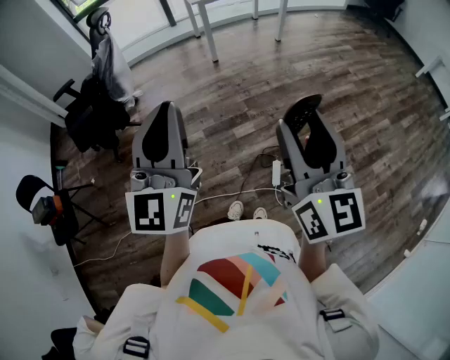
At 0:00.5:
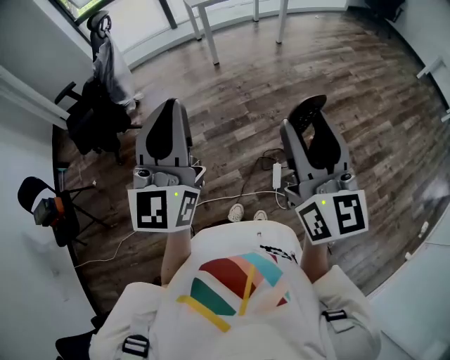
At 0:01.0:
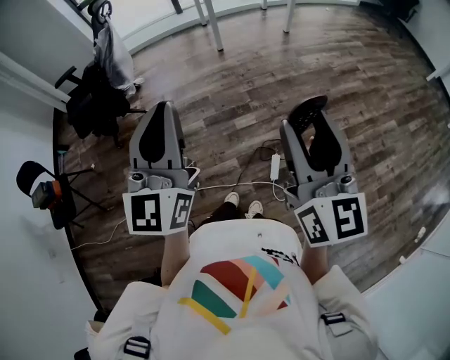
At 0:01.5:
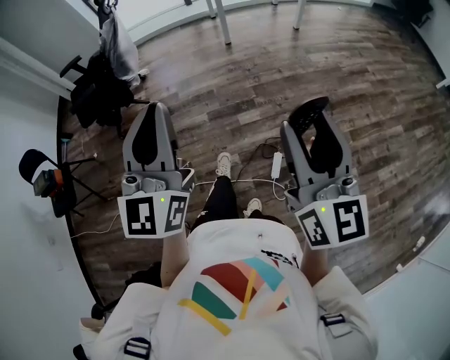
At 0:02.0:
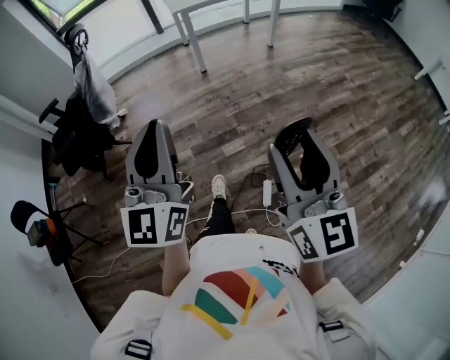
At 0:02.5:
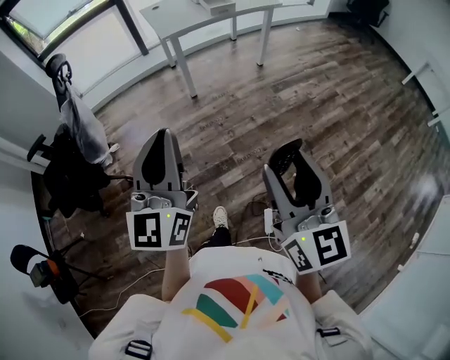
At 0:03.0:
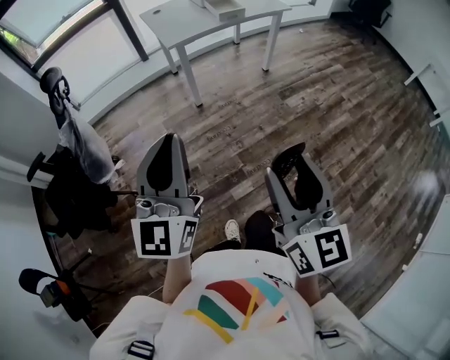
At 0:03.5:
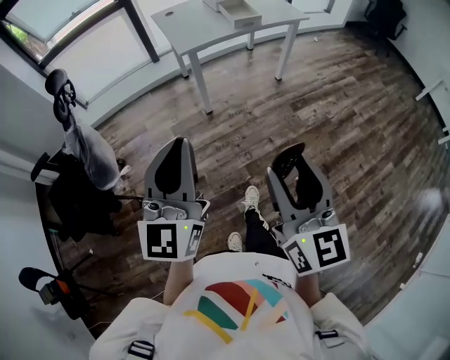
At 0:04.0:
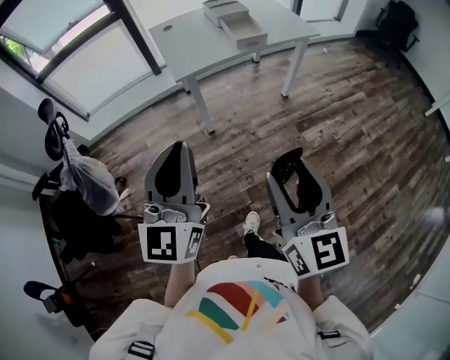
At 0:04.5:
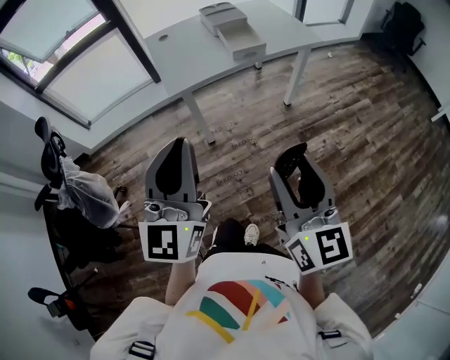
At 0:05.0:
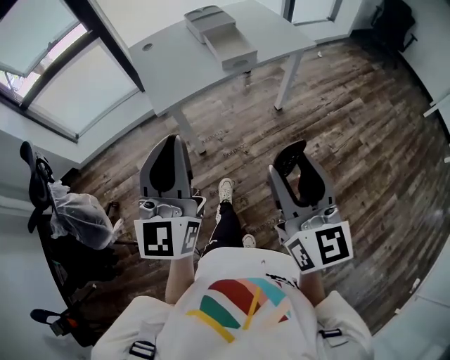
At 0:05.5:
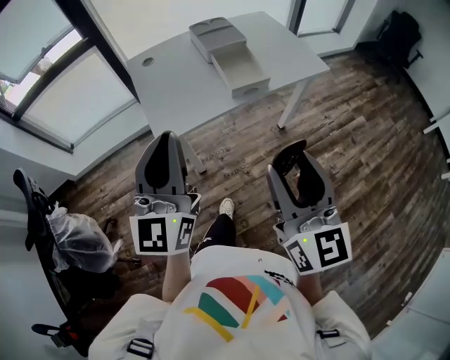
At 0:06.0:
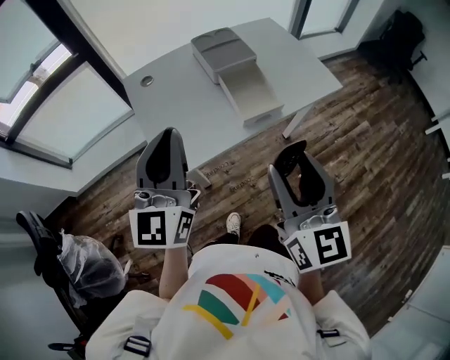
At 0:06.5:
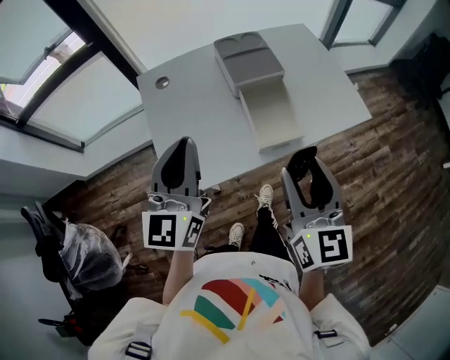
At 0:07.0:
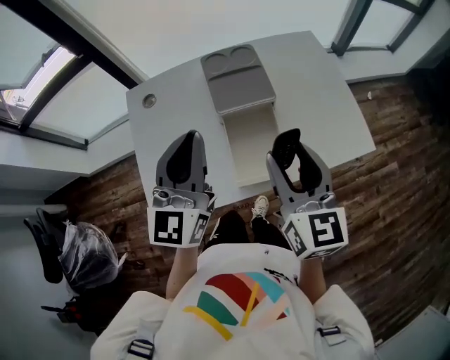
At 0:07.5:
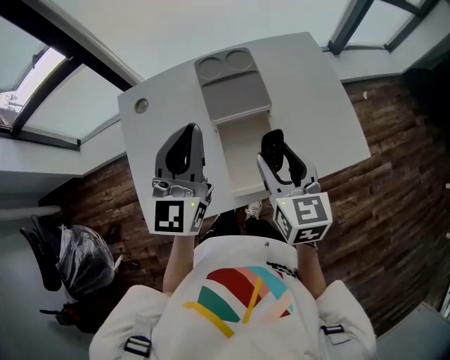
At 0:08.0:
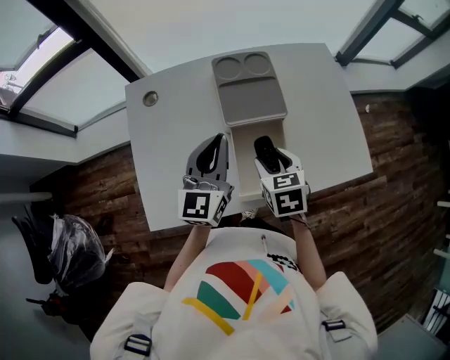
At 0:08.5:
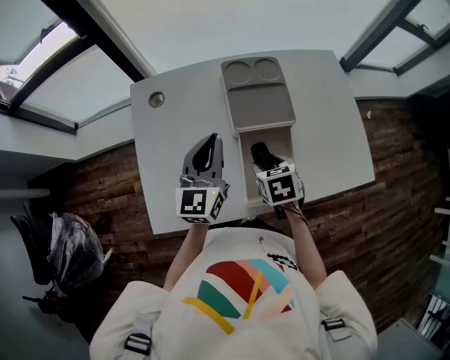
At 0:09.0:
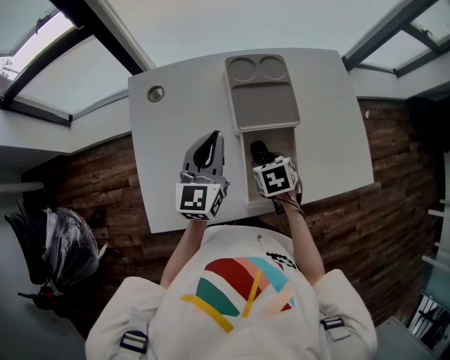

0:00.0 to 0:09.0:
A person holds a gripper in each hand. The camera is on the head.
0:00.0 to 0:02.0: The left gripper is displaced forward by roughly 15 cm. Meanwhile the right gripper shifts about 15 cm forward and to the right.
0:02.0 to 0:04.5: Both grippers are carried forward, approximately 60 cm.
0:04.5 to 0:07.0: Both grippers are carried forward, approximately 60 cm.
0:07.0 to 0:09.0: The right gripper goes some 25 cm downward, and tilts its fingers roughly 60 degrees downward. The left gripper is displaced downward and forward by roughly 20 cm.

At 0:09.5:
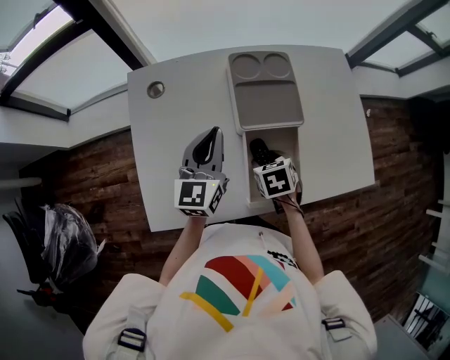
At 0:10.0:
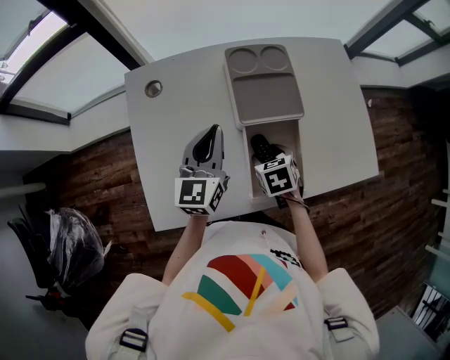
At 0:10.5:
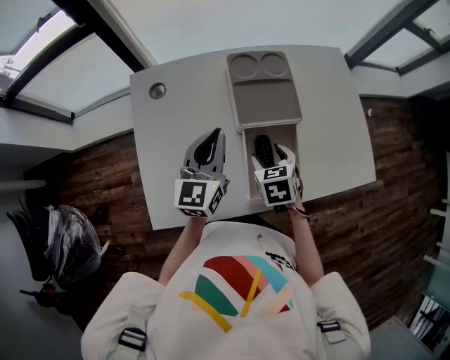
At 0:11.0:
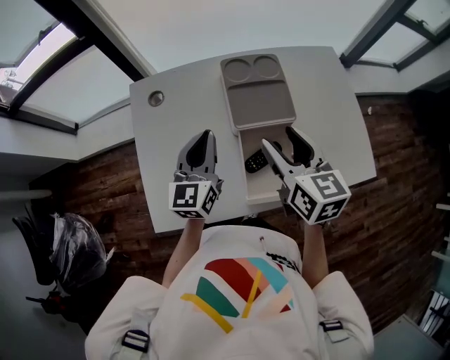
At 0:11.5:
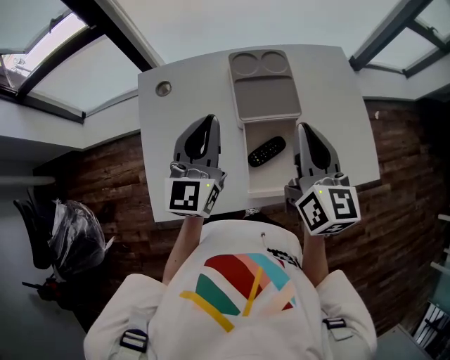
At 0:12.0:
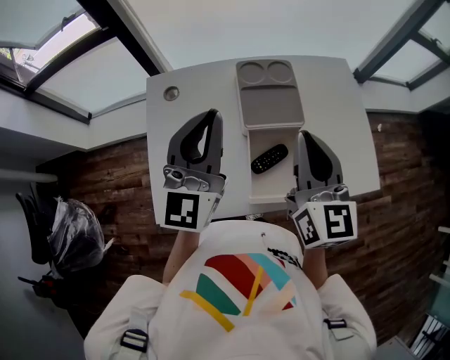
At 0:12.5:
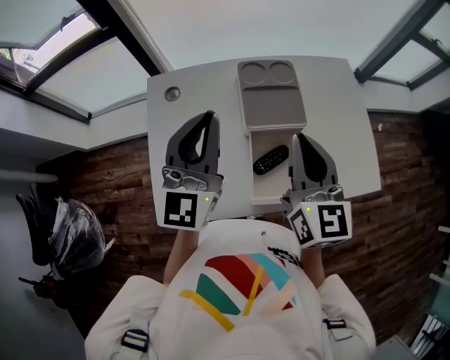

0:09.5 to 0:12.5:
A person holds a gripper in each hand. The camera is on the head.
0:09.5 to 0:11.0: The right gripper travels upward by some 20 cm, and tilts its fingers some 40 degrees upward.
0:11.0 to 0:12.5: The left gripper moves upward, about 15 cm, and rotates approximately 20 degrees, while the right gripper moves upward, some 10 cm, rotates some 20 degrees, and closes its fingers.

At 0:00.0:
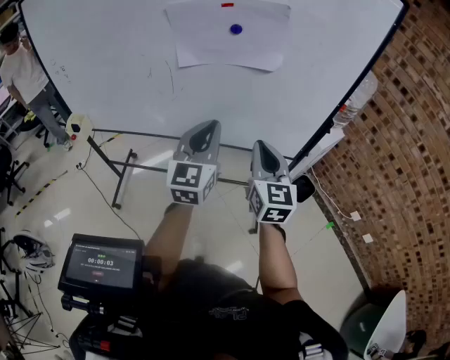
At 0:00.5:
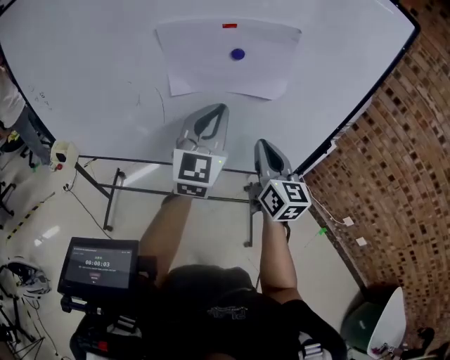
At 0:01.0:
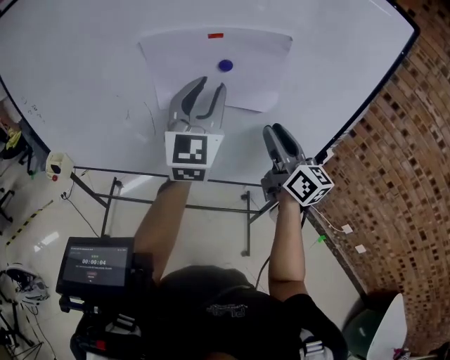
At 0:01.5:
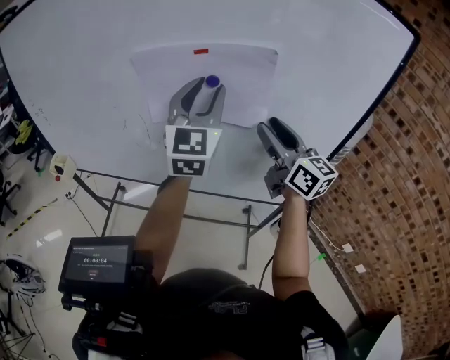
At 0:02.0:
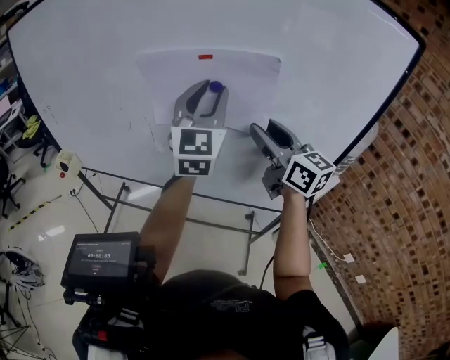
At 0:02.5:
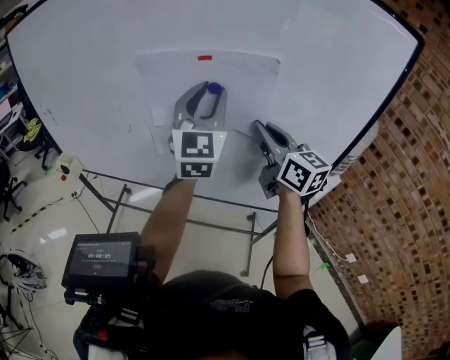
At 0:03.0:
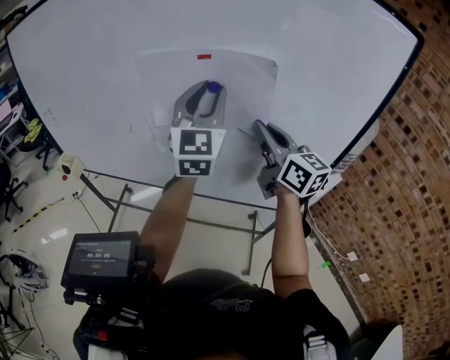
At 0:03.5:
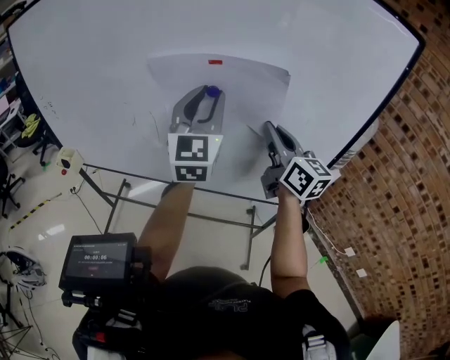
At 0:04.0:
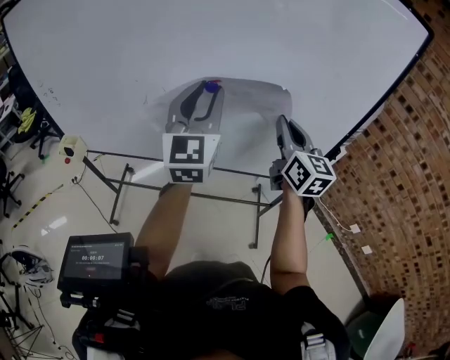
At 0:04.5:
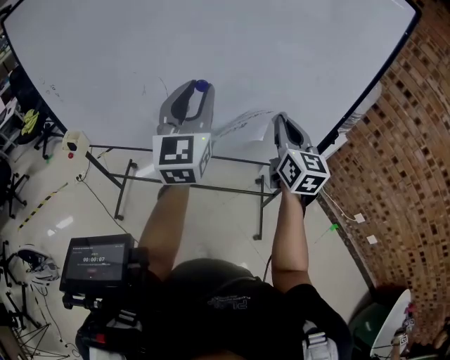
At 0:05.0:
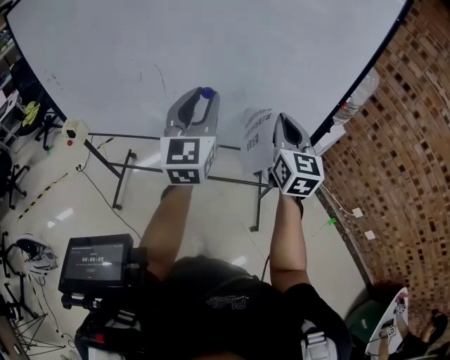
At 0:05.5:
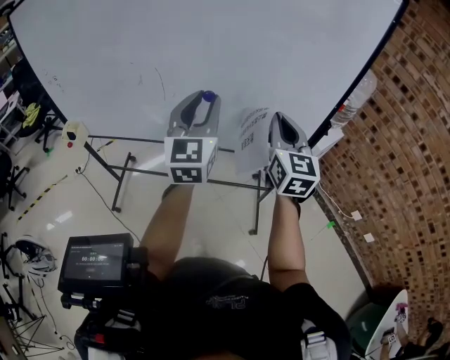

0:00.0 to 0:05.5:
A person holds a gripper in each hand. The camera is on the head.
0:00.0 to 0:02.0: Both grippers move forward and upward, about 25 cm. The left gripper opens up; the right gripper turns by roughly 40 degrees, and opens its fingers.
0:02.0 to 0:03.5: The right gripper closes.
0:03.5 to 0:05.5: The left gripper is displaced backward and downward by roughly 15 cm. Meanwhile the right gripper moves backward, roughly 10 cm, and rotates some 30 degrees.

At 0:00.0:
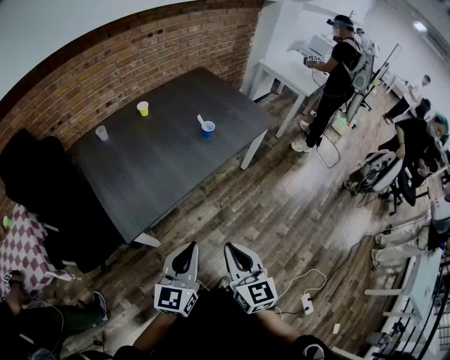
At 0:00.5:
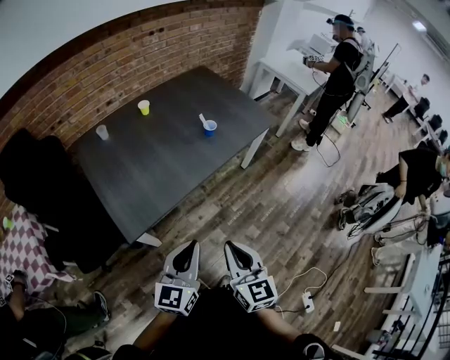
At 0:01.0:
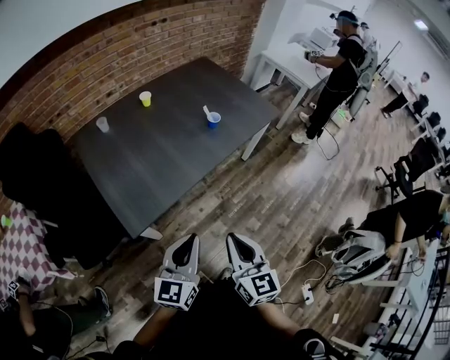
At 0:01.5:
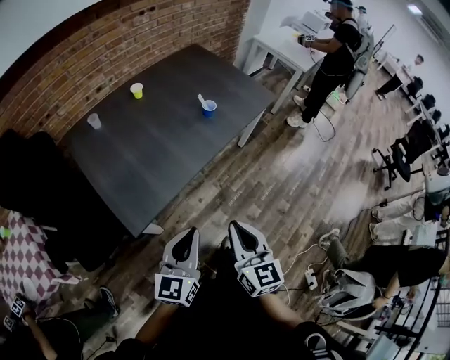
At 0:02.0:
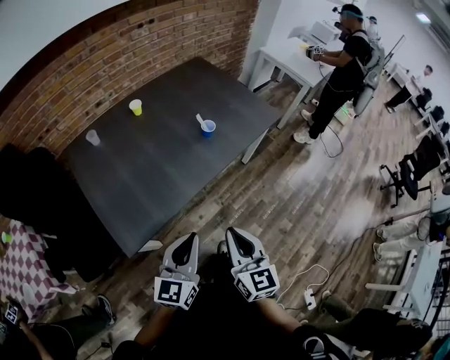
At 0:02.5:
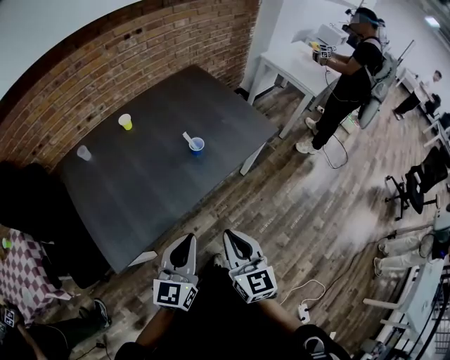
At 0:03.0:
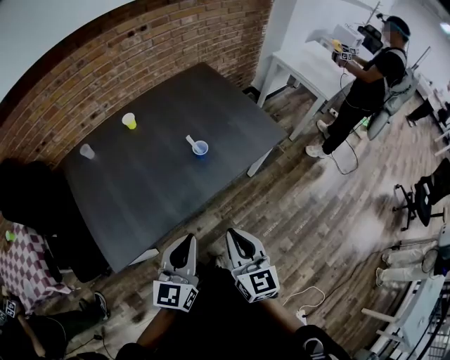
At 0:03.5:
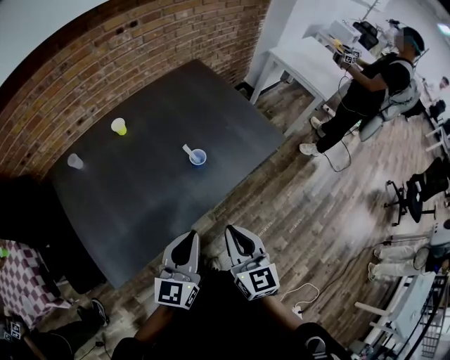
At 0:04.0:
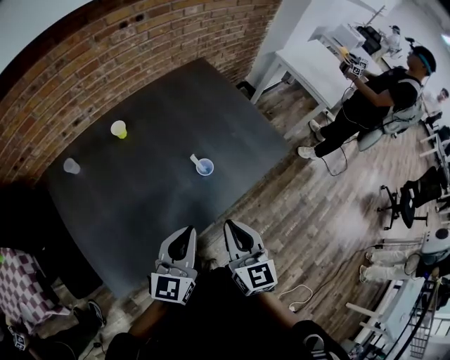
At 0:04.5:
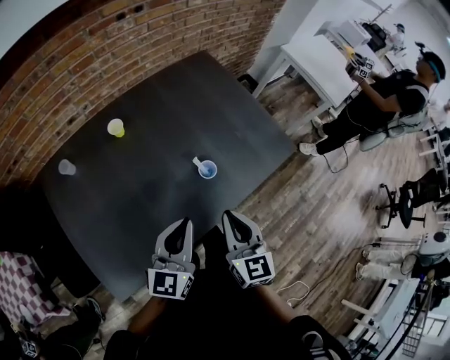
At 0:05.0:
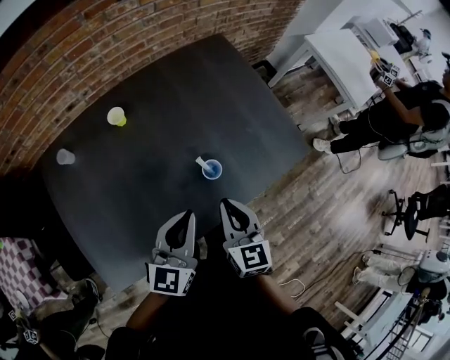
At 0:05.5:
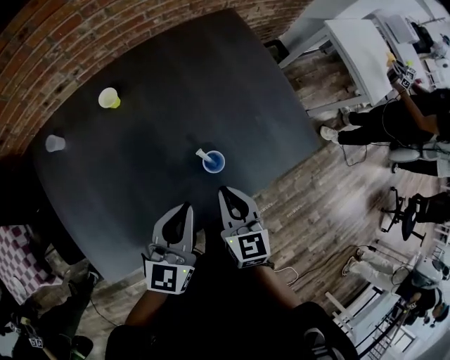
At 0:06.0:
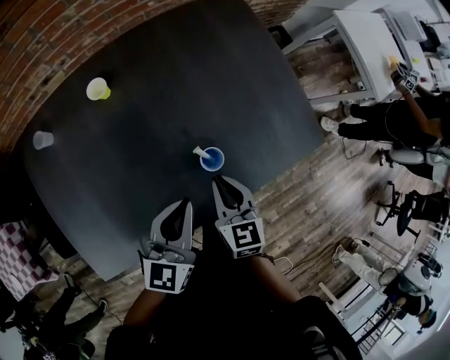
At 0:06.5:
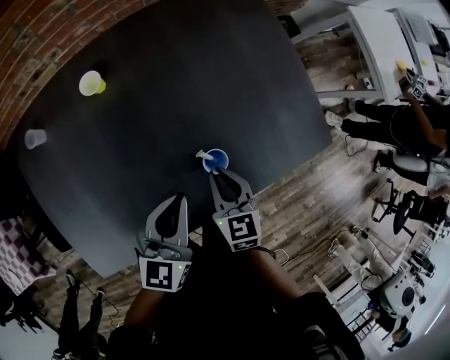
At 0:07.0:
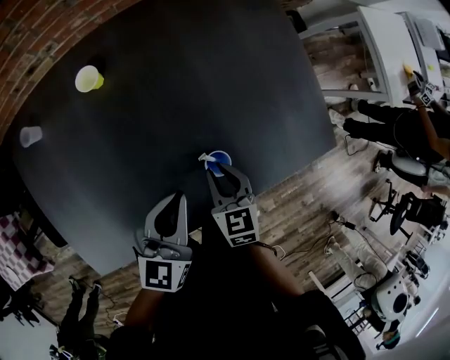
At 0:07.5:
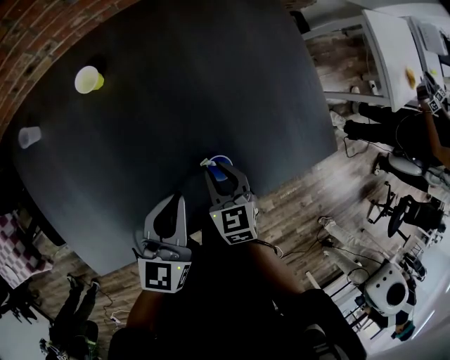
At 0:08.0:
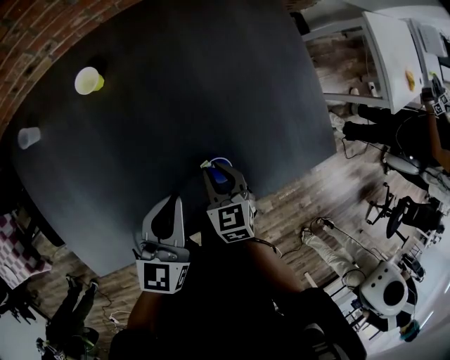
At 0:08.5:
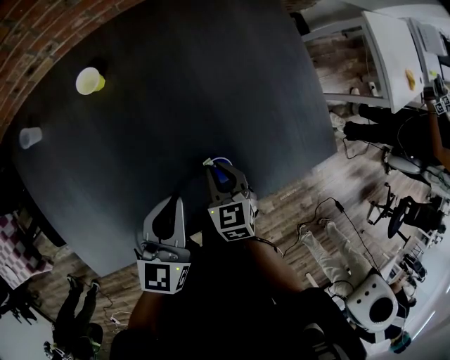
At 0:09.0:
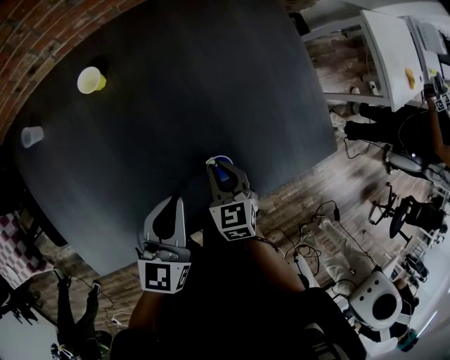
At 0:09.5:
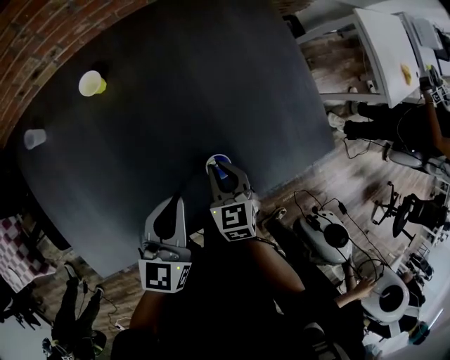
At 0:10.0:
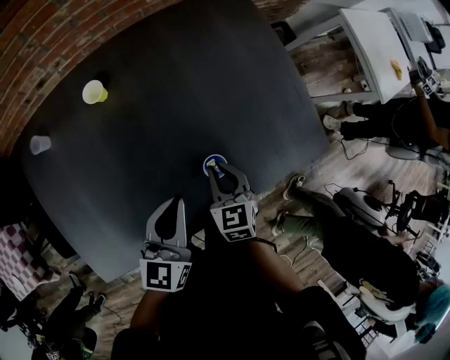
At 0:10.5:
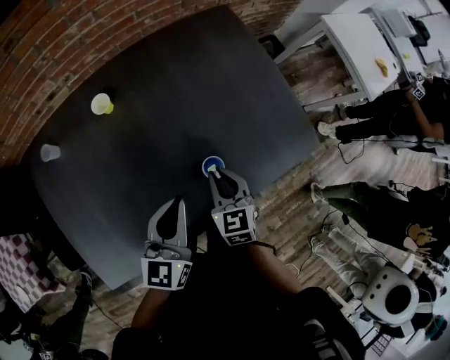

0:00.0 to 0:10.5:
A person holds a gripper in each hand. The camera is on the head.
0:00.0 to 0:02.0: The grippers both shift forward by about 10 cm.
0:02.0 to 0:04.0: The two grippers go about 30 cm forward.
0:04.0 to 0:06.5: Both grippers travel together forward and downward, about 25 cm. The right gripper rotates roughly 30 degrees.
0:06.5 to 0:08.5: The right gripper moves downward, some 5 cm.
0:08.5 to 0:10.5: The grippers both shift upward by some 5 cm.
